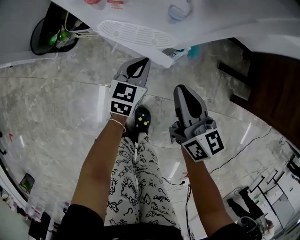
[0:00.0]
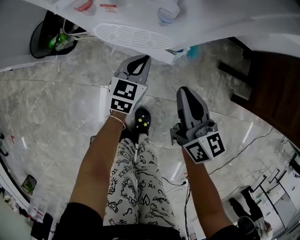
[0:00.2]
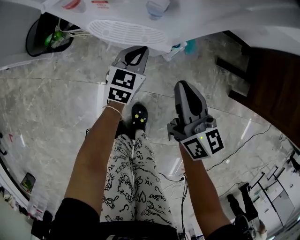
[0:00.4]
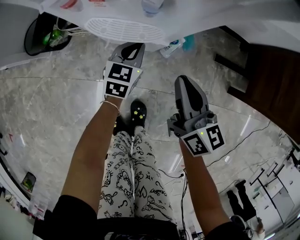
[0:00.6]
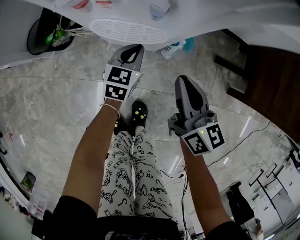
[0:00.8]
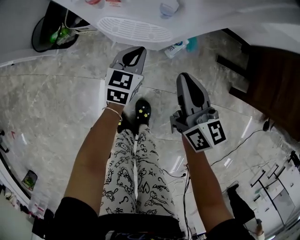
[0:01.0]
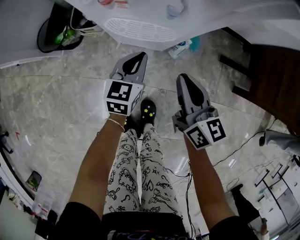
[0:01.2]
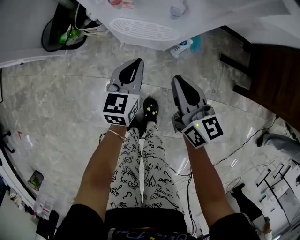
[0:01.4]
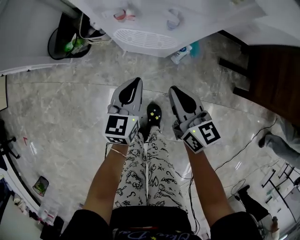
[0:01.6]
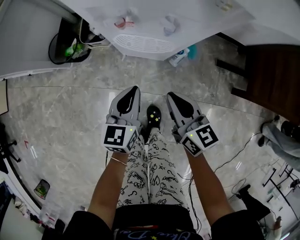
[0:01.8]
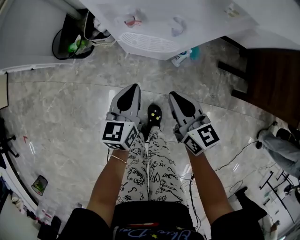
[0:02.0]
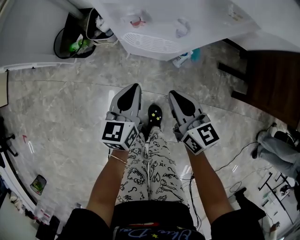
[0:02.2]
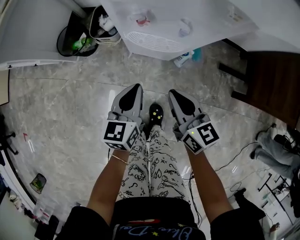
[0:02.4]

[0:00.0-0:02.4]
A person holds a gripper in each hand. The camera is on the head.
0:00.0 to 0:01.2: The left gripper is displaced upward by roughly 5 cm.
0:01.2 to 0:02.4: The left gripper moves upward, backward and to the left, roughly 20 cm. Meanwhile the right gripper shifts roughly 10 cm to the left and upward.

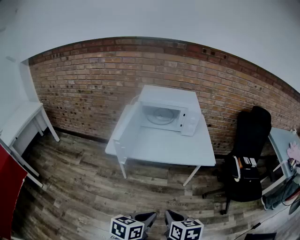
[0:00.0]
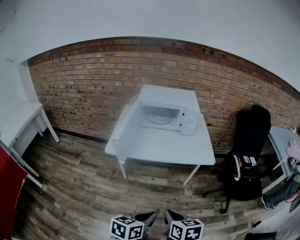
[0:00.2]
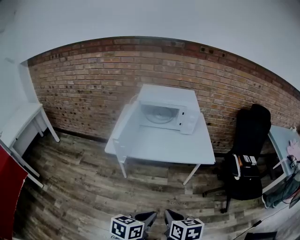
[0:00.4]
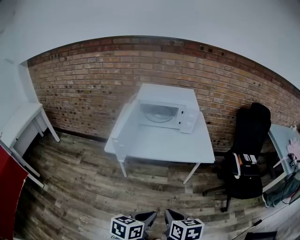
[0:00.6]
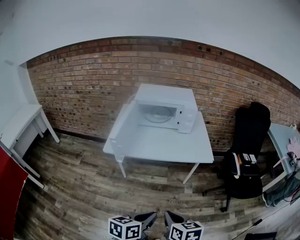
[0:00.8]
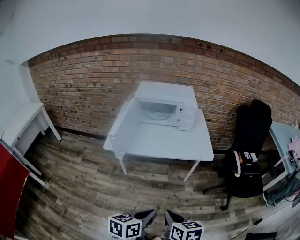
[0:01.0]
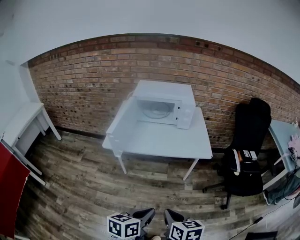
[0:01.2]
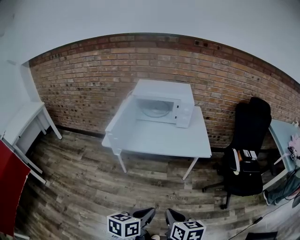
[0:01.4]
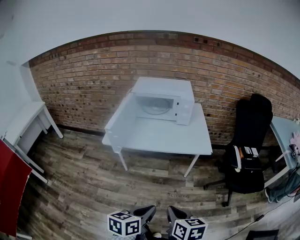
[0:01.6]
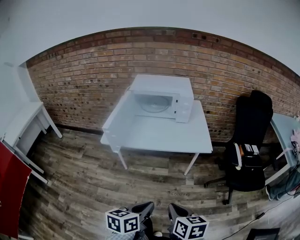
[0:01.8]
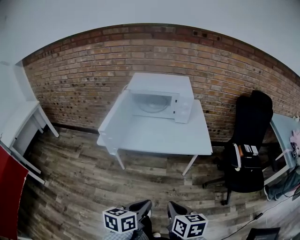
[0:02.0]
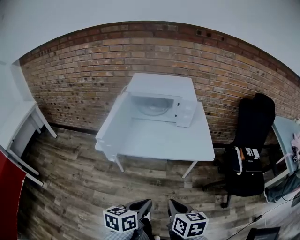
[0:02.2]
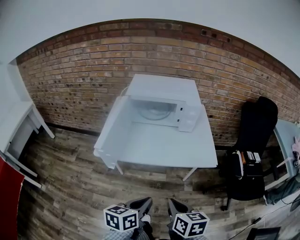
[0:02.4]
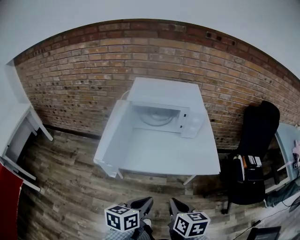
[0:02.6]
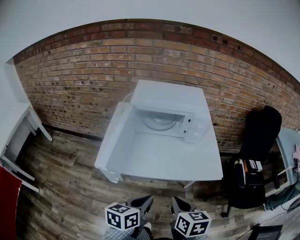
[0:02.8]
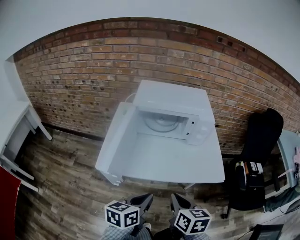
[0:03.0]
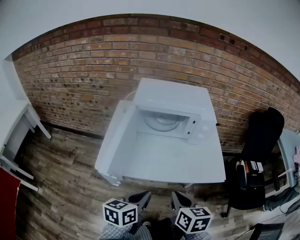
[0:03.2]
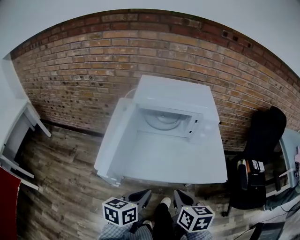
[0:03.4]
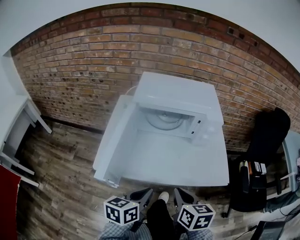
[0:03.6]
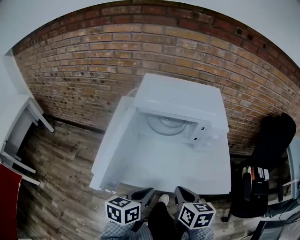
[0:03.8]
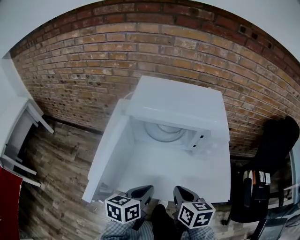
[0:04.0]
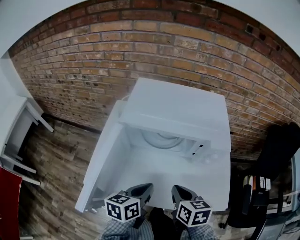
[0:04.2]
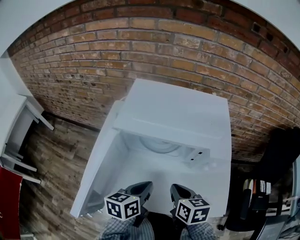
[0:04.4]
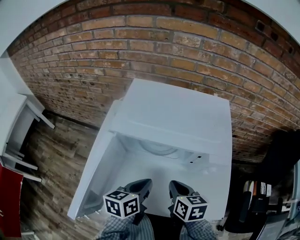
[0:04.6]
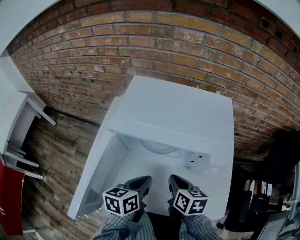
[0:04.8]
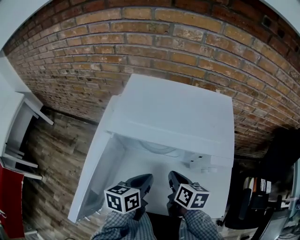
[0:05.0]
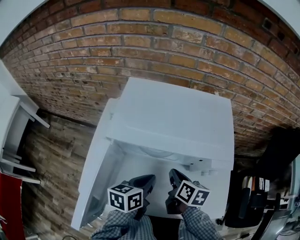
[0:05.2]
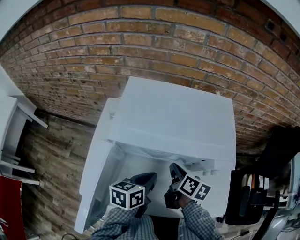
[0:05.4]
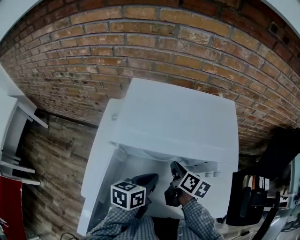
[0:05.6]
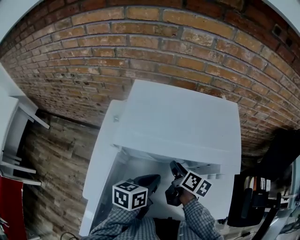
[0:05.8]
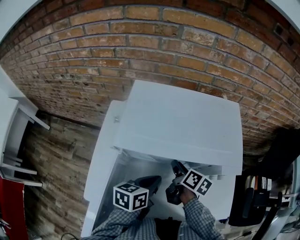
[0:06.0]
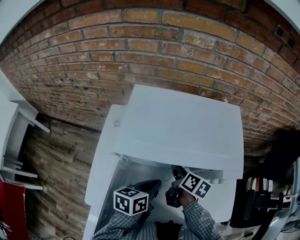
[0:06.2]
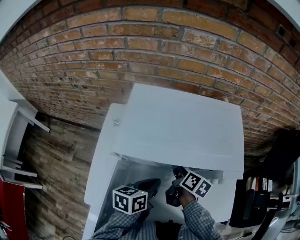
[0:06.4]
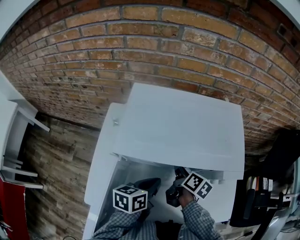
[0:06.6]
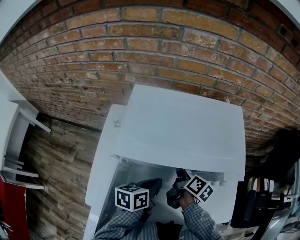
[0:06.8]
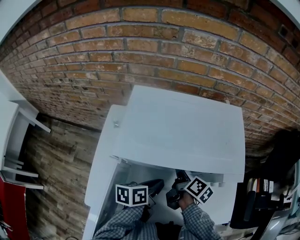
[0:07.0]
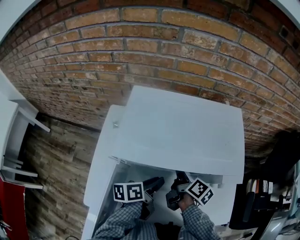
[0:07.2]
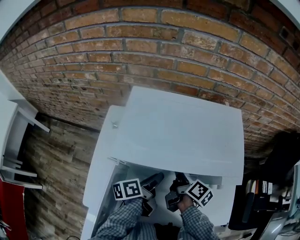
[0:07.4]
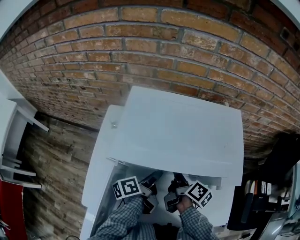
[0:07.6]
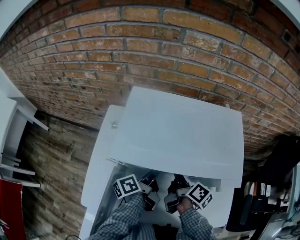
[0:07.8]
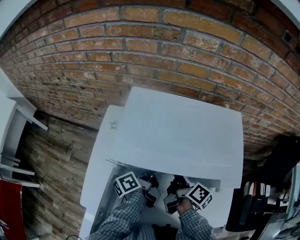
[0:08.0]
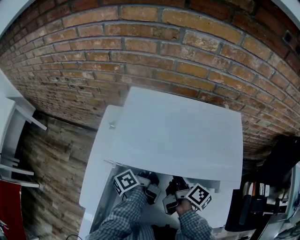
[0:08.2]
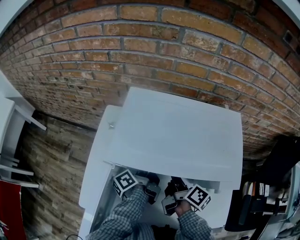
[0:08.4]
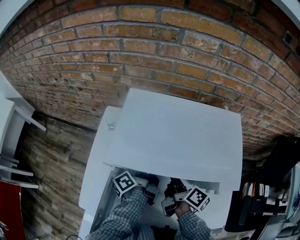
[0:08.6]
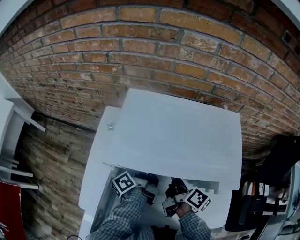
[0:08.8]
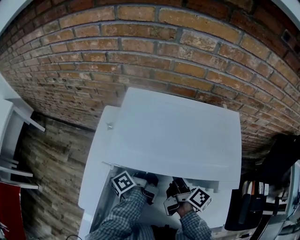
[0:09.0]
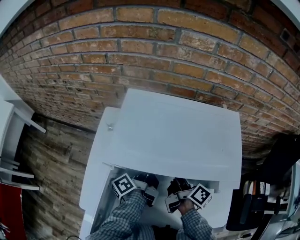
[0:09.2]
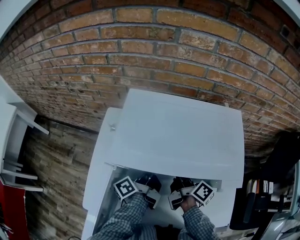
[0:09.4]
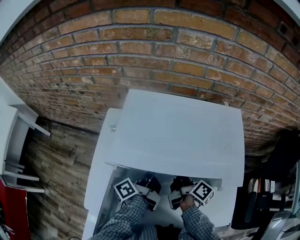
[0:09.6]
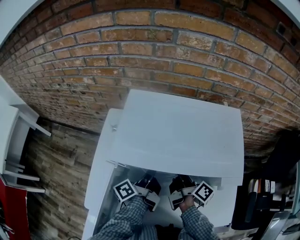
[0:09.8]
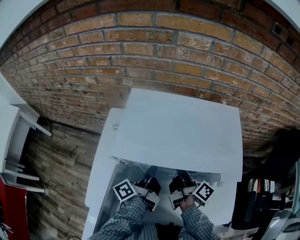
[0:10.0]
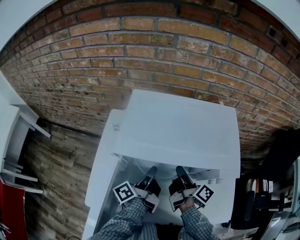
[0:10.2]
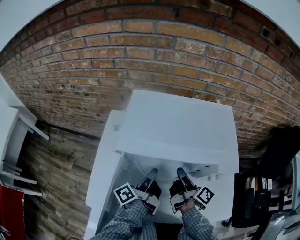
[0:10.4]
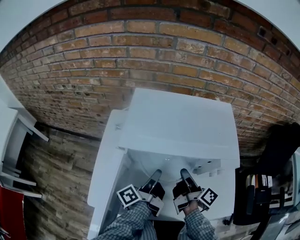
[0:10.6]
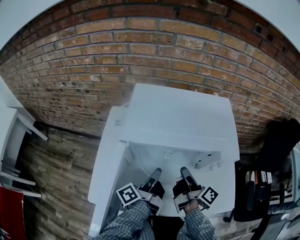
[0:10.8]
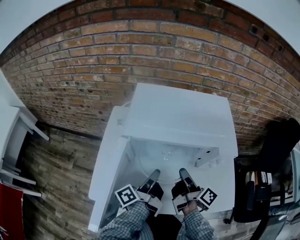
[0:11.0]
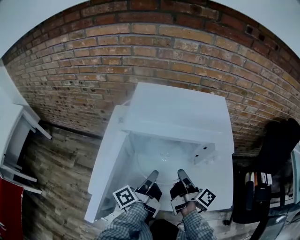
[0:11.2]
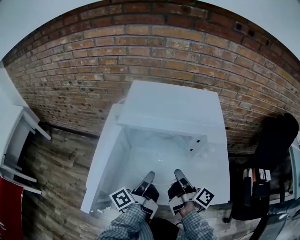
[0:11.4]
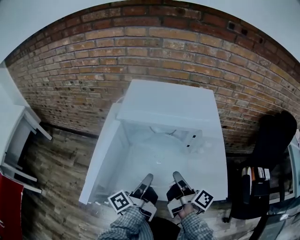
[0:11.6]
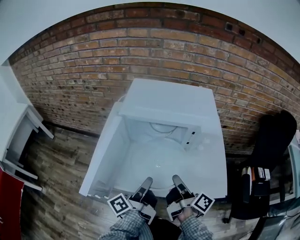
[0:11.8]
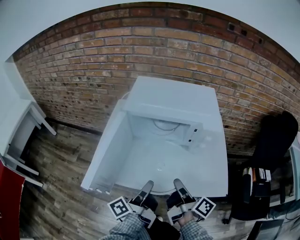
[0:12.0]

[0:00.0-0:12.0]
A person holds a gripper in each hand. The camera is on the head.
0:00.0 to 0:01.6: The right gripper changes place by approximately 10 cm.
0:01.6 to 0:03.0: The right gripper changes place by approximately 30 cm.
0:03.0 to 0:04.4: The right gripper moves about 30 cm.
0:04.4 to 0:06.0: The right gripper ends up approximately 15 cm from where it was, rotates approximately 40 degrees, and opens.
0:07.6 to 0:09.0: The right gripper opens.
0:10.4 to 0:12.0: The right gripper moves about 25 cm.

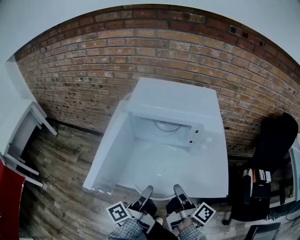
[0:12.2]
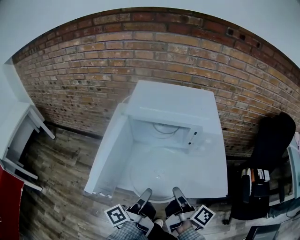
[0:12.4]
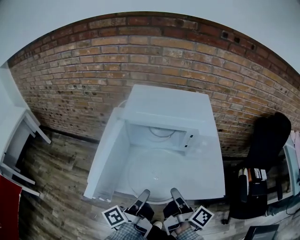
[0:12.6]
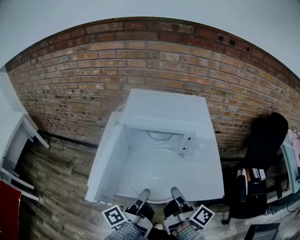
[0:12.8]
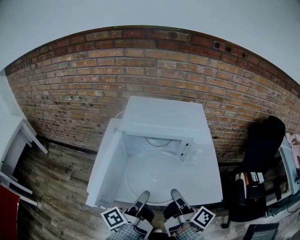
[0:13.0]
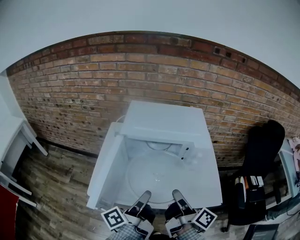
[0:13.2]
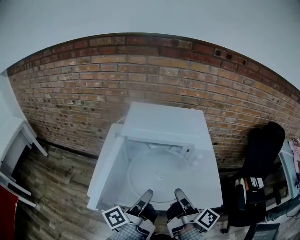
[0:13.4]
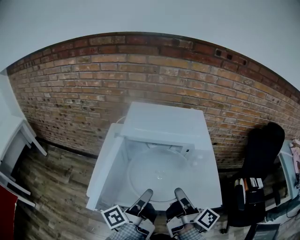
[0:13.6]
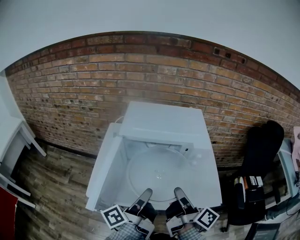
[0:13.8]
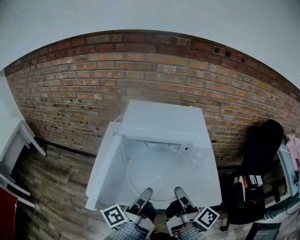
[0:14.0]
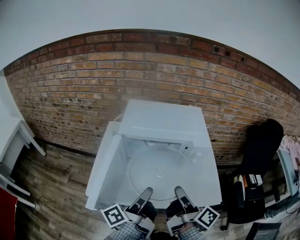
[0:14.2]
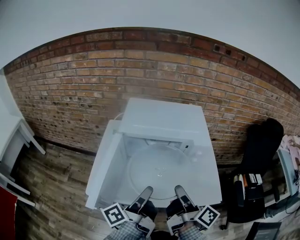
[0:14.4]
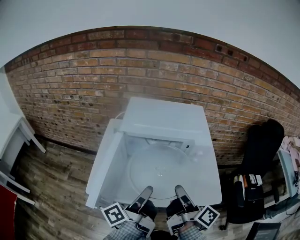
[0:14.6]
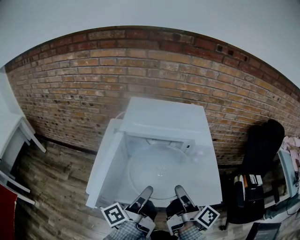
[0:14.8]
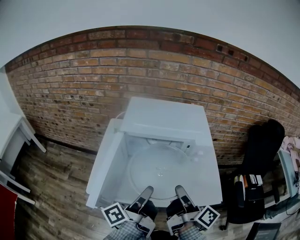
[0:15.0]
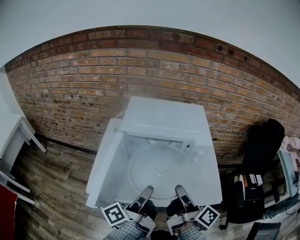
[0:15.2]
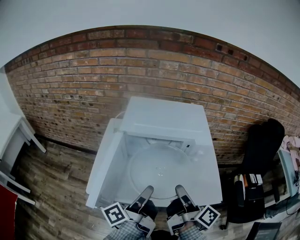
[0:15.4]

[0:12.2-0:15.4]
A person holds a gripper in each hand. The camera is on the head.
0:12.2 to 0:13.8: The right gripper travels upward by approximately 10 cm.

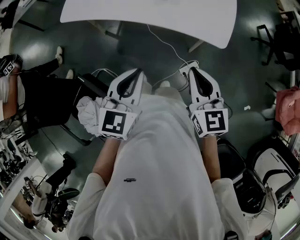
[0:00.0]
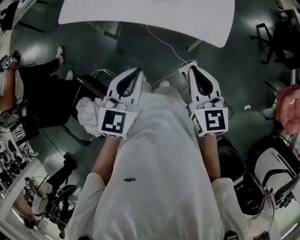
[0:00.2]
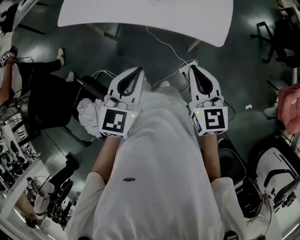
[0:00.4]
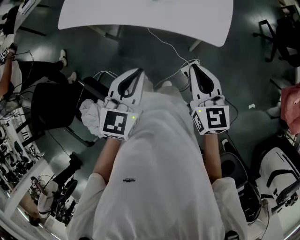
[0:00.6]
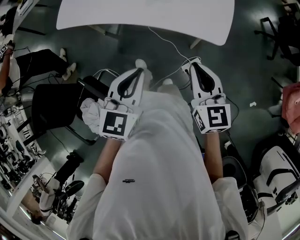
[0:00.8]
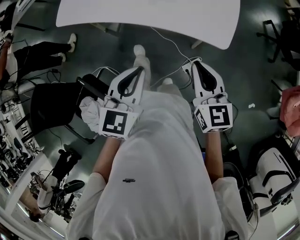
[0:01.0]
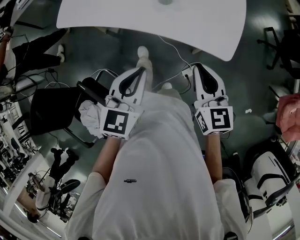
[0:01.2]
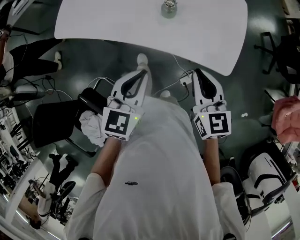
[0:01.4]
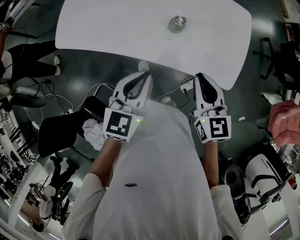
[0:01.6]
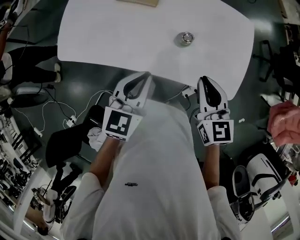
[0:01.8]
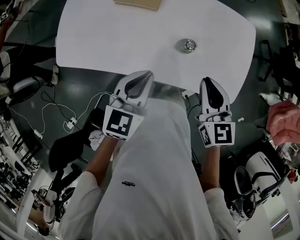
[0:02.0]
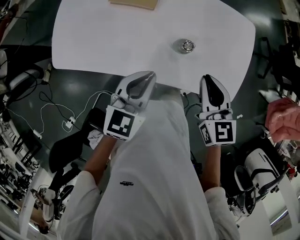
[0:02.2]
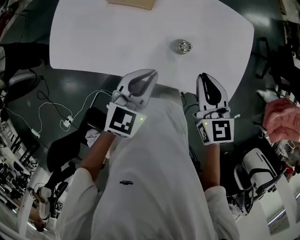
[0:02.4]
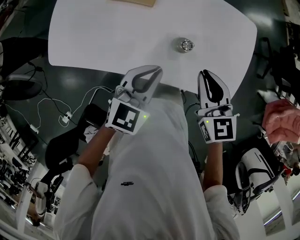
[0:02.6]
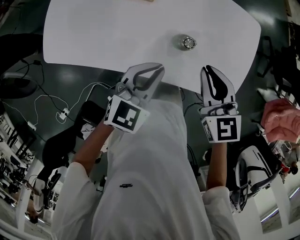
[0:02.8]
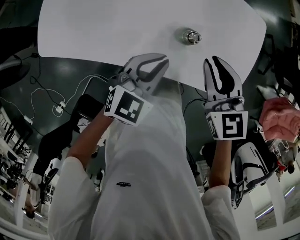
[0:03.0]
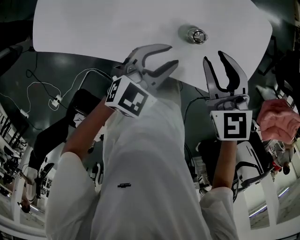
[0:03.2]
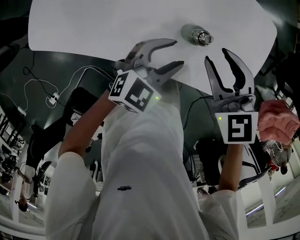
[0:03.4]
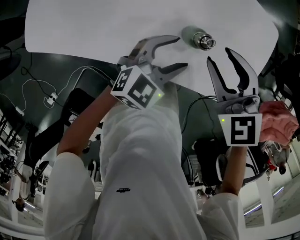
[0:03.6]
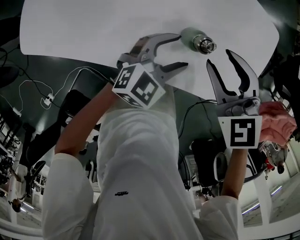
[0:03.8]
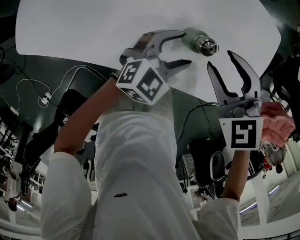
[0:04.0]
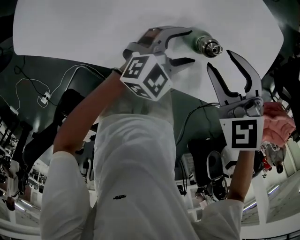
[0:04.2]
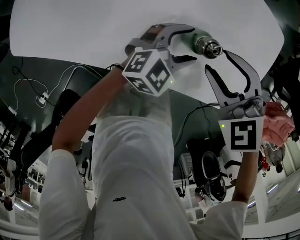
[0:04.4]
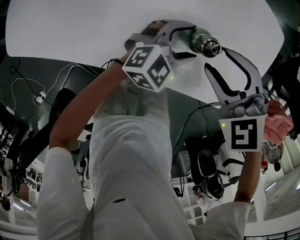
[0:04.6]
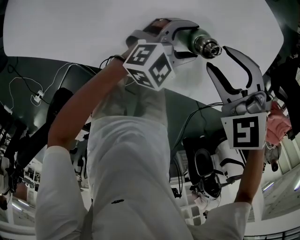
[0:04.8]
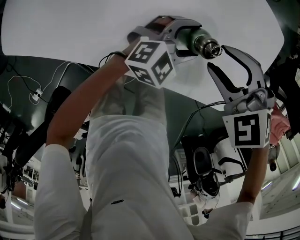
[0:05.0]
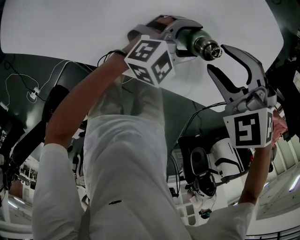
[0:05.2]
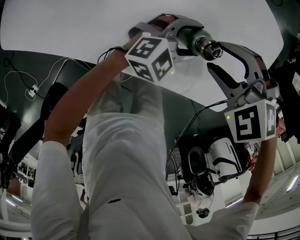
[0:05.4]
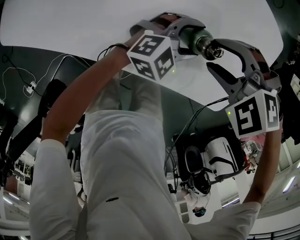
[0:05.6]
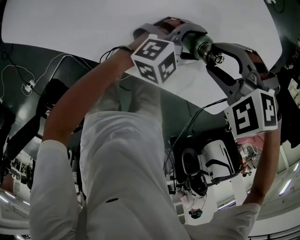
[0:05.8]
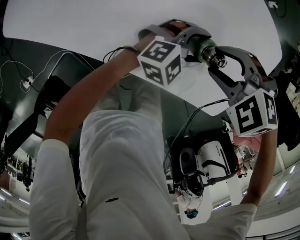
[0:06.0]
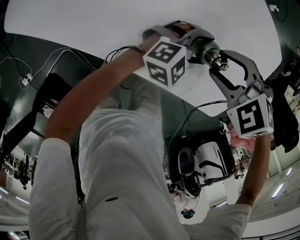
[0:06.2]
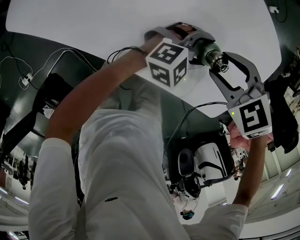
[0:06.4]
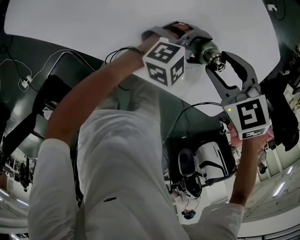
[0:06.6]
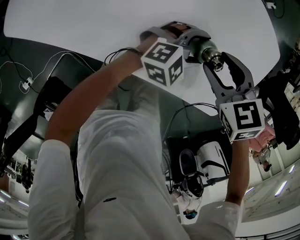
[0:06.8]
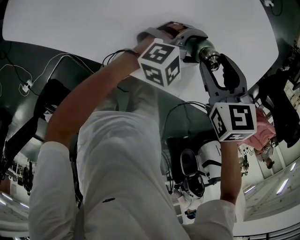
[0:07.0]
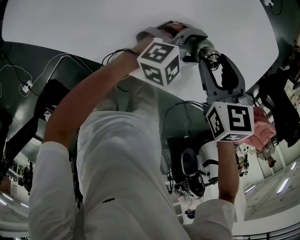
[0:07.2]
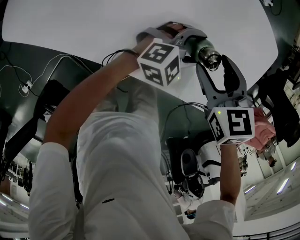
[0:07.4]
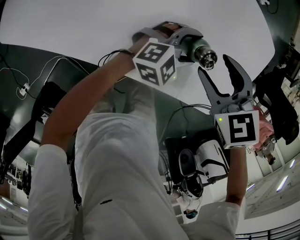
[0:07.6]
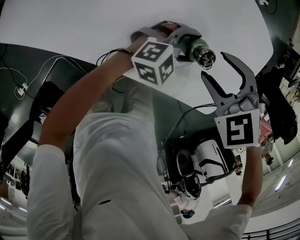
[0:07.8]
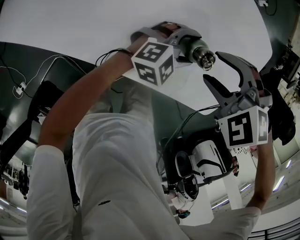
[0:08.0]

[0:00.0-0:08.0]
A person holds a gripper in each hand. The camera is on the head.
0:00.0 to 0:01.6: The grippers both shift forward by approximately 25 cm.
0:01.6 to 0:03.2: The right gripper travels forward and to the left by some 20 cm, changes its angle by some 20 degrees, and opens its fingers. Meanwhile the left gripper heads forward and downward, covering about 20 cm, changes its angle by approximately 20 degrees, and opens up.
0:03.2 to 0:04.8: The right gripper shifts about 10 cm downward, and changes its angle by approximately 40 degrees, while the left gripper moves downward, to the right and forward, approximately 15 cm, and opens up.
0:04.8 to 0:06.4: The right gripper rotates approximately 20 degrees.
0:06.4 to 0:08.0: The right gripper changes its angle by approximately 20 degrees.
